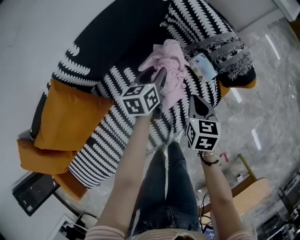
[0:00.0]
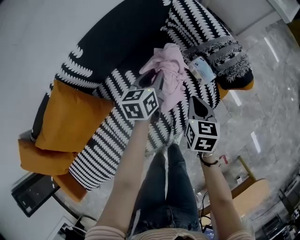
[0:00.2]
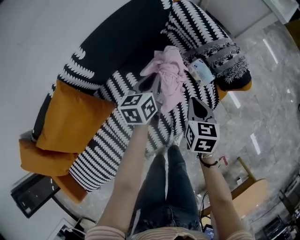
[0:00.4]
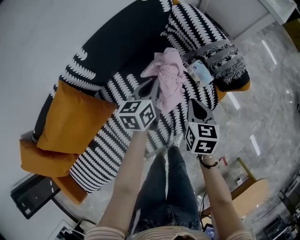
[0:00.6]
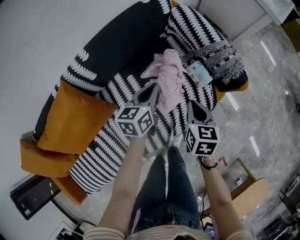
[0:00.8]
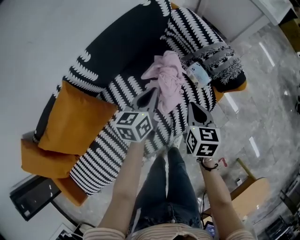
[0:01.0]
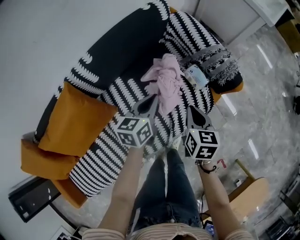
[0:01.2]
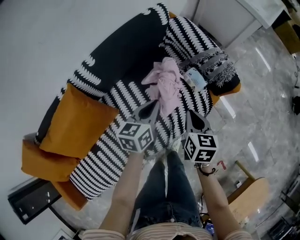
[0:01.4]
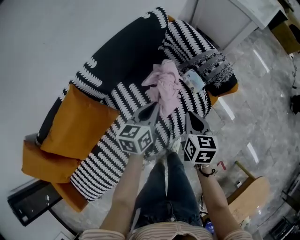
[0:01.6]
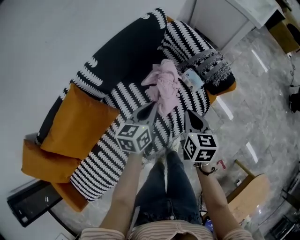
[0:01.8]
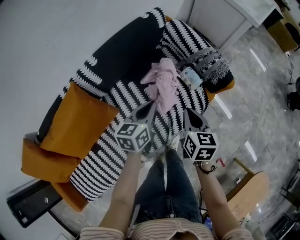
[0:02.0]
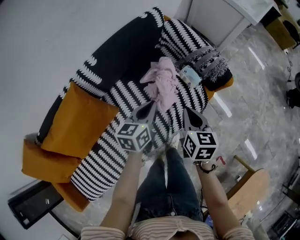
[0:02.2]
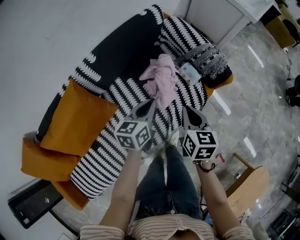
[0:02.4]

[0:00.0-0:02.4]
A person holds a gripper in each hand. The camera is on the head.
0:00.0 to 0:01.2: The right gripper moves upward, approximately 10 cm. The left gripper shifts about 15 cm upward and backward, and closes up.
0:01.2 to 0:02.4: The left gripper goes approximately 10 cm backward and upward, while the right gripper heads upward and backward, covering approximately 10 cm.

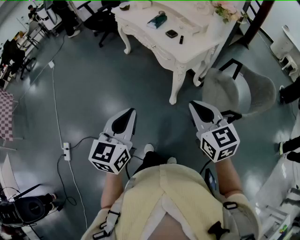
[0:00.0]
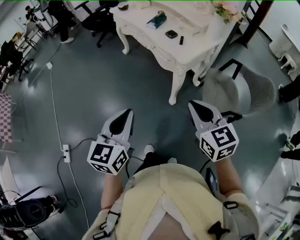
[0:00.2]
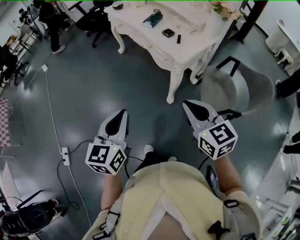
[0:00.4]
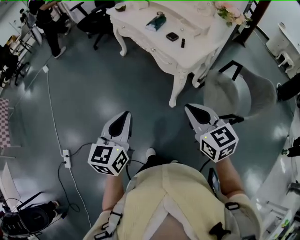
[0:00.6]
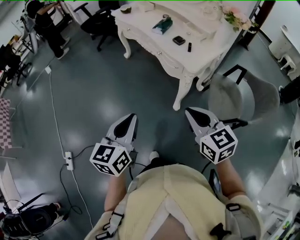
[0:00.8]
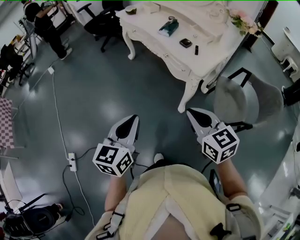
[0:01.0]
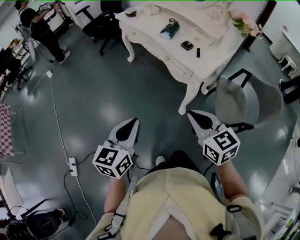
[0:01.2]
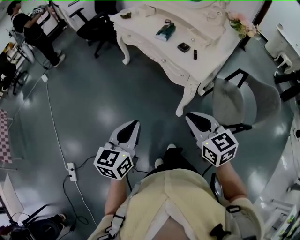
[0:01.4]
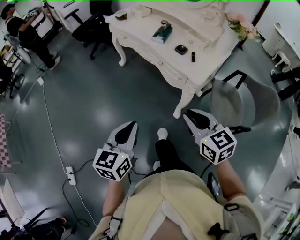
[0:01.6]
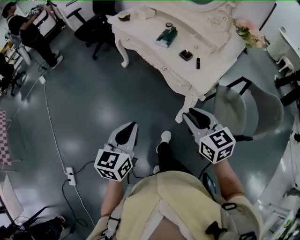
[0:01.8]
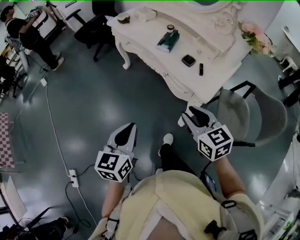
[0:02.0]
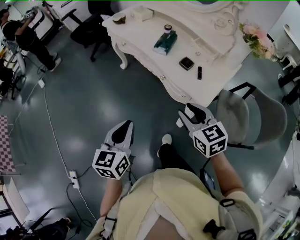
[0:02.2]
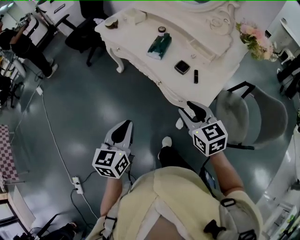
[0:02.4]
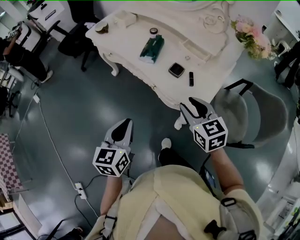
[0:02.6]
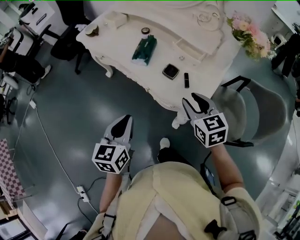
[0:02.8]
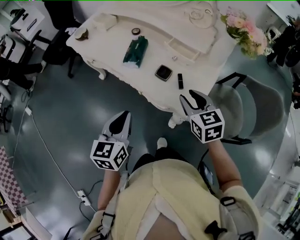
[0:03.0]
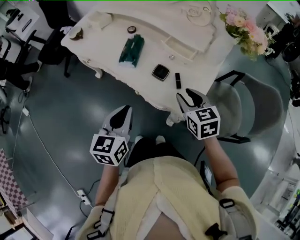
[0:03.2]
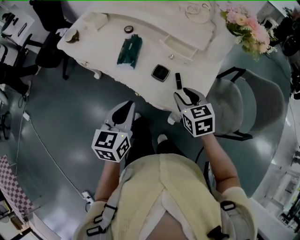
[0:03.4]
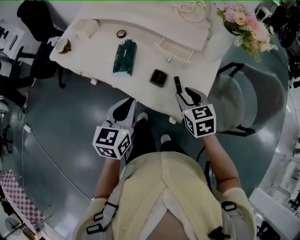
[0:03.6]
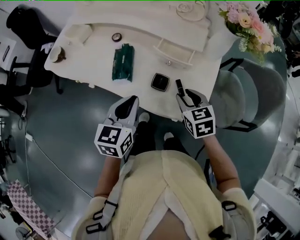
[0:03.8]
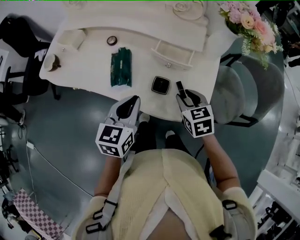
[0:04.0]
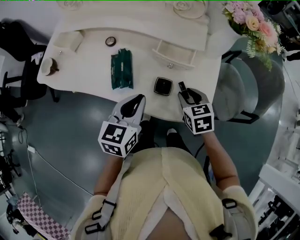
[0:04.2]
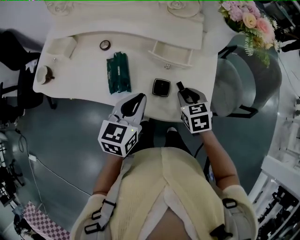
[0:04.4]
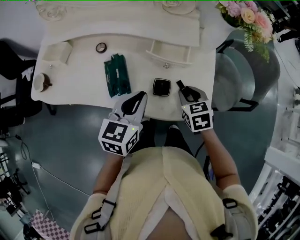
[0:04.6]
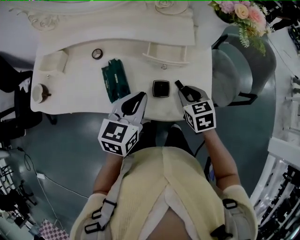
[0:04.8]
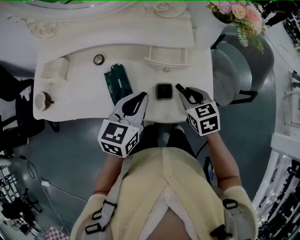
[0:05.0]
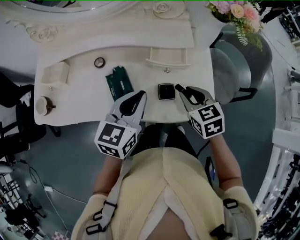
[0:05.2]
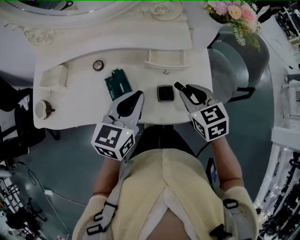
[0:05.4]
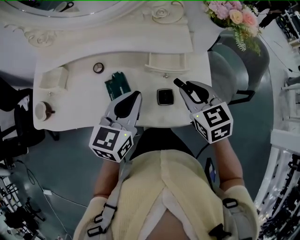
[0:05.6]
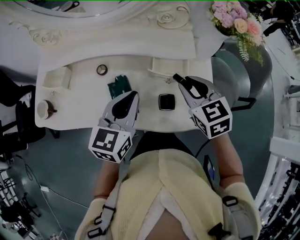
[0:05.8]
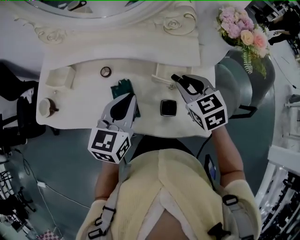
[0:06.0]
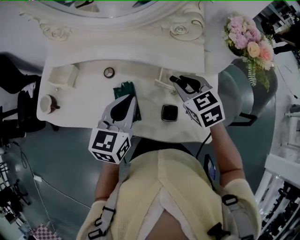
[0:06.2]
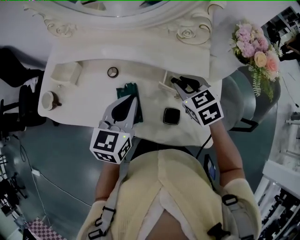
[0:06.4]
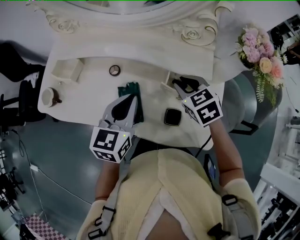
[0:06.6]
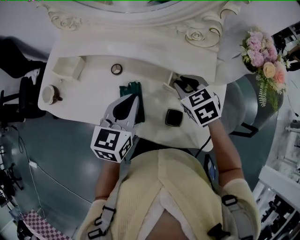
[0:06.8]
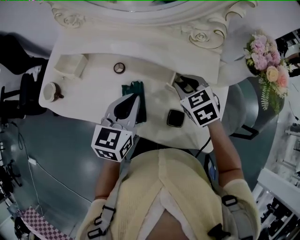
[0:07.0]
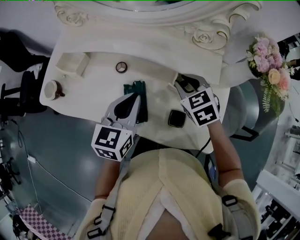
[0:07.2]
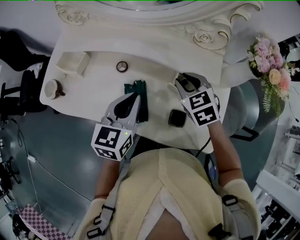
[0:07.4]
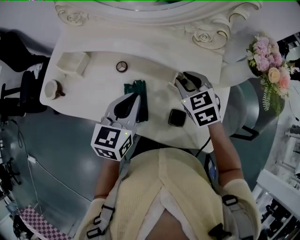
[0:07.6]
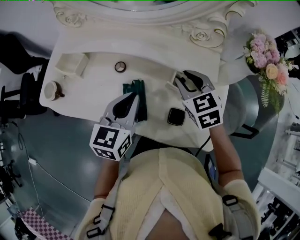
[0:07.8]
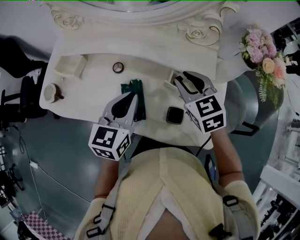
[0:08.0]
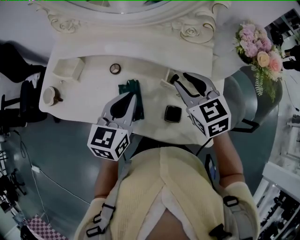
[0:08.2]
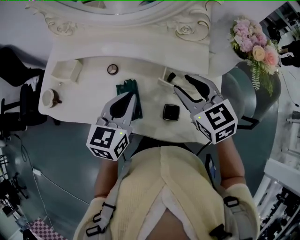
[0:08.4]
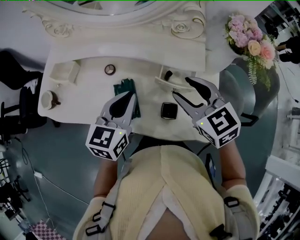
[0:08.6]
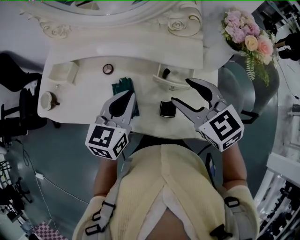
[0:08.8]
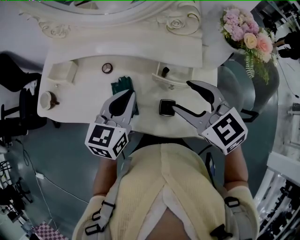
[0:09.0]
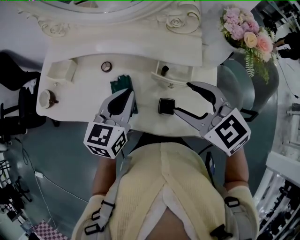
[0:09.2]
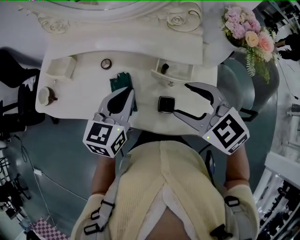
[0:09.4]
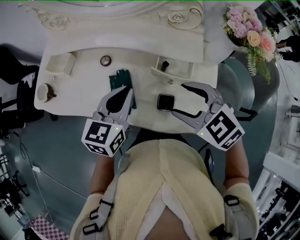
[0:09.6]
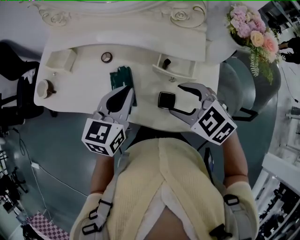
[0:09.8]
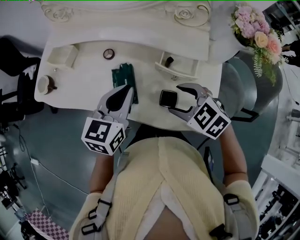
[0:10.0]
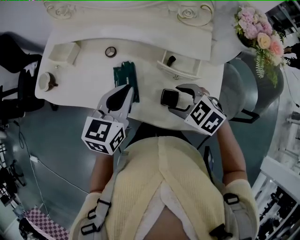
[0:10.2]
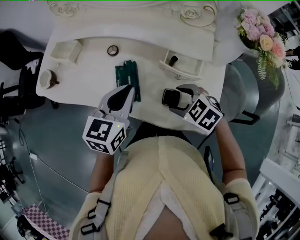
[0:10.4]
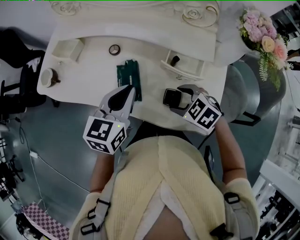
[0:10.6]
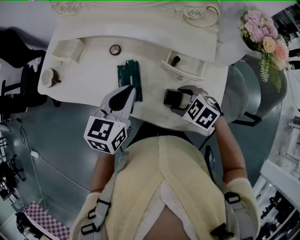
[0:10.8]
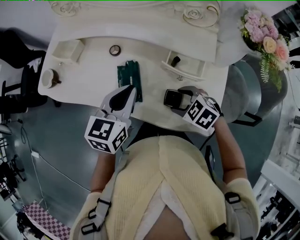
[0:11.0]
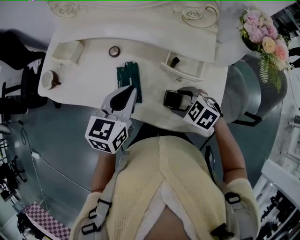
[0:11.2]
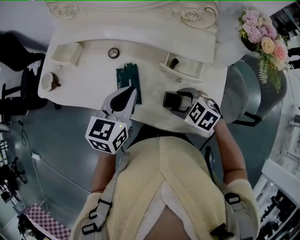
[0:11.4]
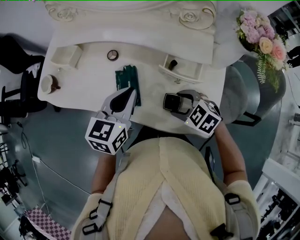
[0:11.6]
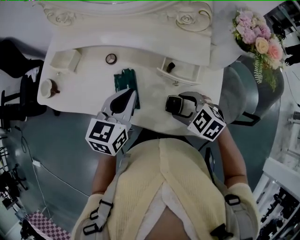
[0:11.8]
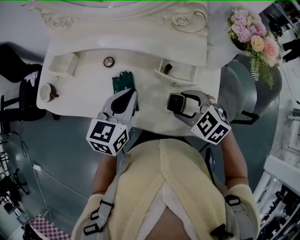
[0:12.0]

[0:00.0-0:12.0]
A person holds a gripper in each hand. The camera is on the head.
0:00.0 to 0:01.6: The two grippers go some 20 cm forward and to the left.
0:01.6 to 0:03.0: The left gripper shifts roughly 30 cm forward, while the right gripper goes approximately 35 cm forward and to the right, and changes its angle by some 20 degrees.
0:03.0 to 0:04.4: The left gripper changes place by approximately 20 cm, and swivels about 30 degrees. Meanwhile the right gripper goes approximately 10 cm downward, and swivels about 30 degrees.
0:04.4 to 0:06.0: The right gripper goes some 15 cm upward, forward and to the left; the left gripper shifts some 10 cm forward, to the left and upward.
0:06.0 to 0:07.6: The right gripper moves forward and to the left, some 10 cm.
0:07.6 to 0:09.0: The right gripper heads backward and upward, covering some 15 cm, and opens.
0:09.0 to 0:10.4: The right gripper travels downward by approximately 15 cm, and swivels approximately 30 degrees.
0:10.4 to 0:12.0: There are only small adjustments of the grippers.

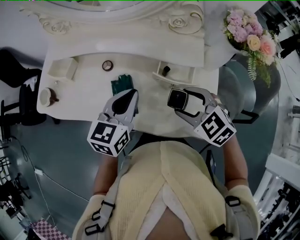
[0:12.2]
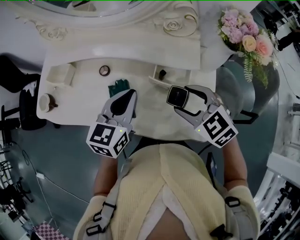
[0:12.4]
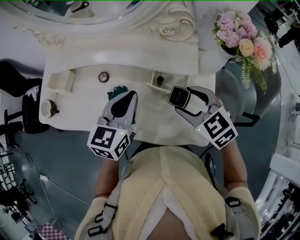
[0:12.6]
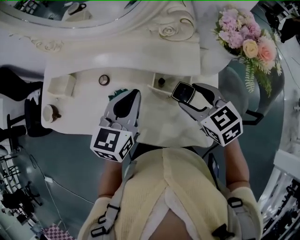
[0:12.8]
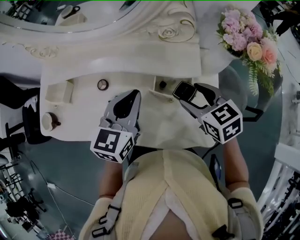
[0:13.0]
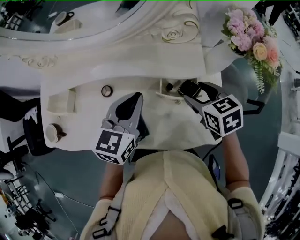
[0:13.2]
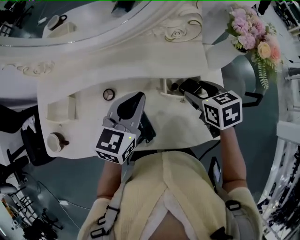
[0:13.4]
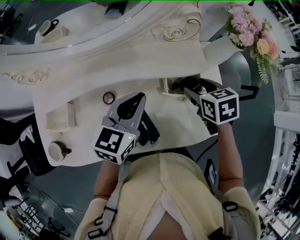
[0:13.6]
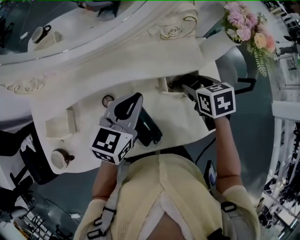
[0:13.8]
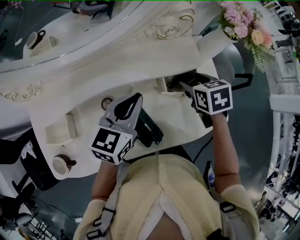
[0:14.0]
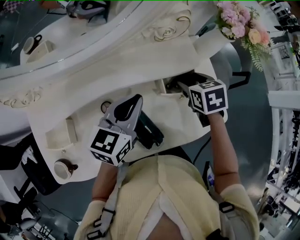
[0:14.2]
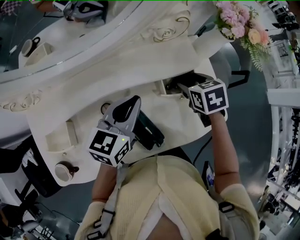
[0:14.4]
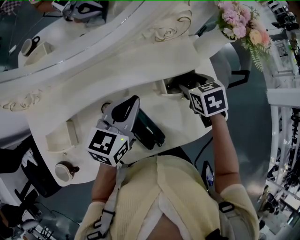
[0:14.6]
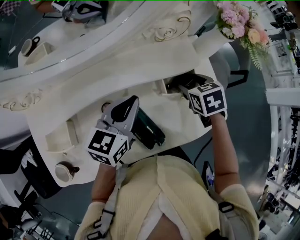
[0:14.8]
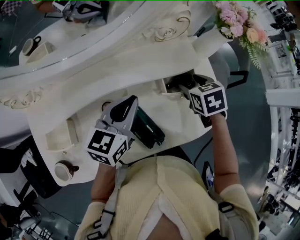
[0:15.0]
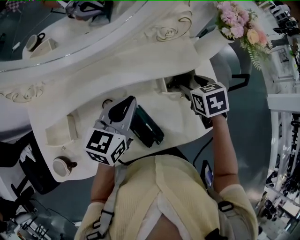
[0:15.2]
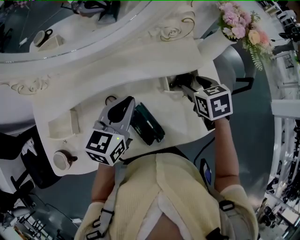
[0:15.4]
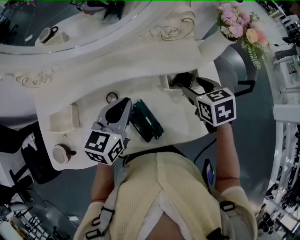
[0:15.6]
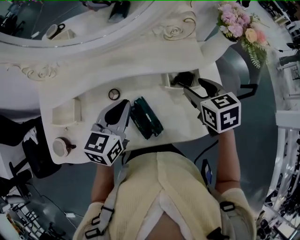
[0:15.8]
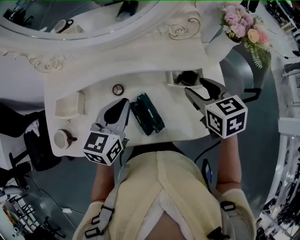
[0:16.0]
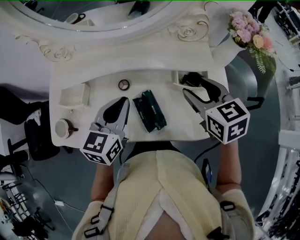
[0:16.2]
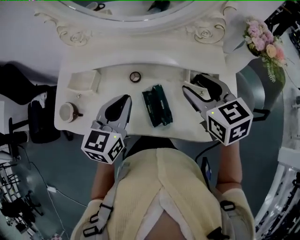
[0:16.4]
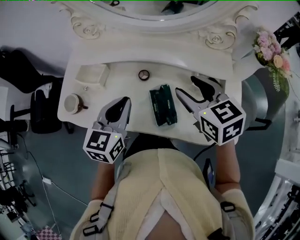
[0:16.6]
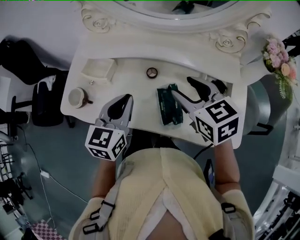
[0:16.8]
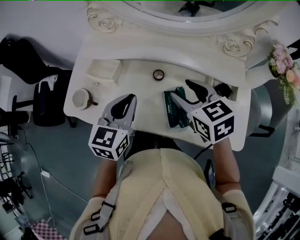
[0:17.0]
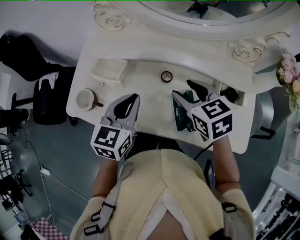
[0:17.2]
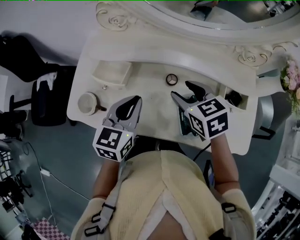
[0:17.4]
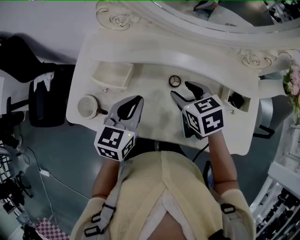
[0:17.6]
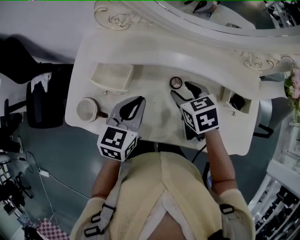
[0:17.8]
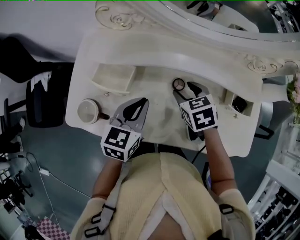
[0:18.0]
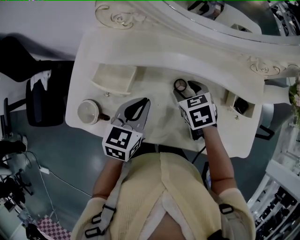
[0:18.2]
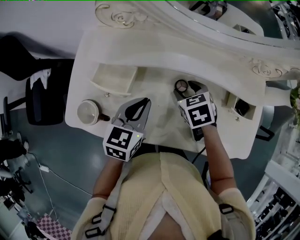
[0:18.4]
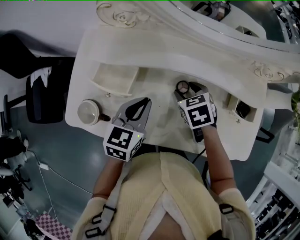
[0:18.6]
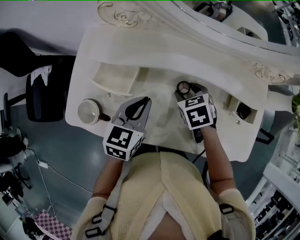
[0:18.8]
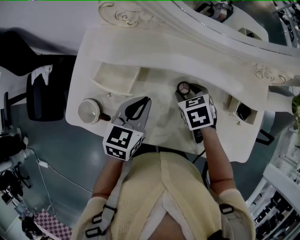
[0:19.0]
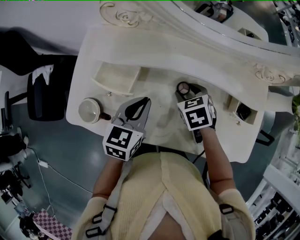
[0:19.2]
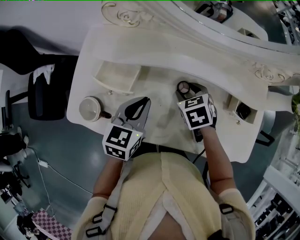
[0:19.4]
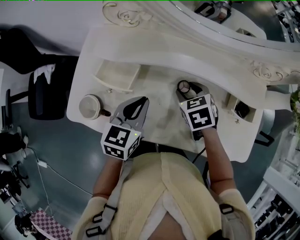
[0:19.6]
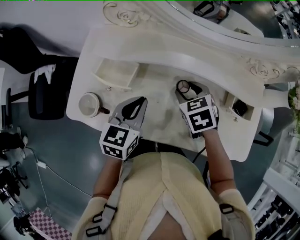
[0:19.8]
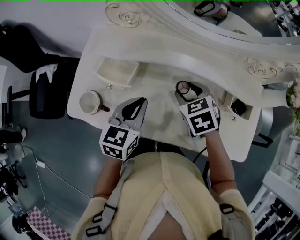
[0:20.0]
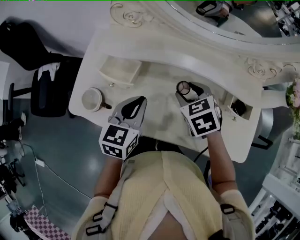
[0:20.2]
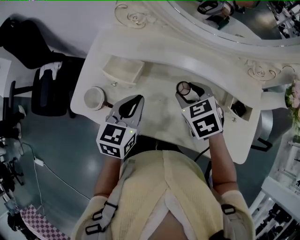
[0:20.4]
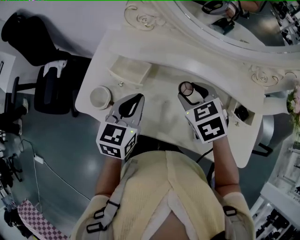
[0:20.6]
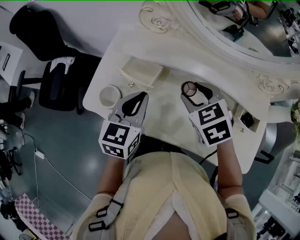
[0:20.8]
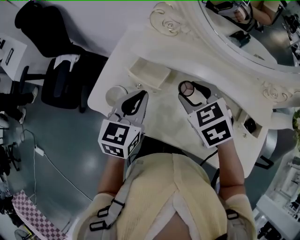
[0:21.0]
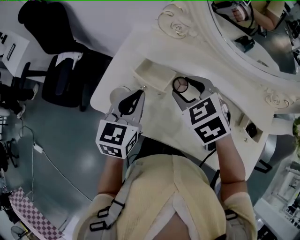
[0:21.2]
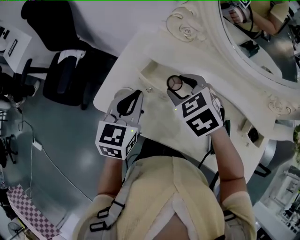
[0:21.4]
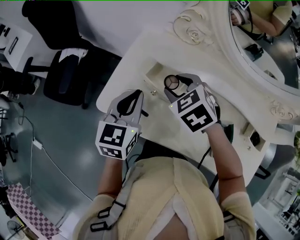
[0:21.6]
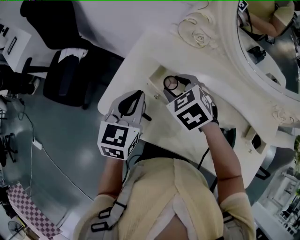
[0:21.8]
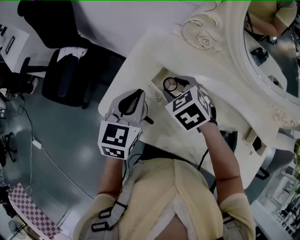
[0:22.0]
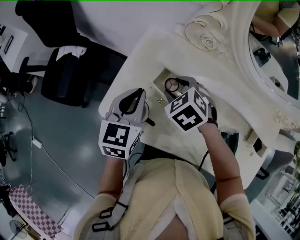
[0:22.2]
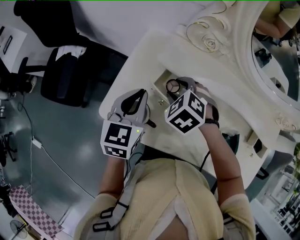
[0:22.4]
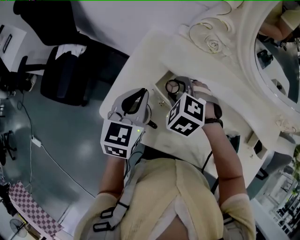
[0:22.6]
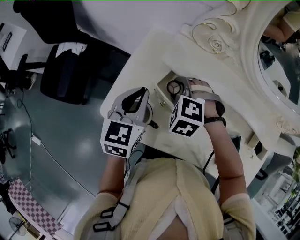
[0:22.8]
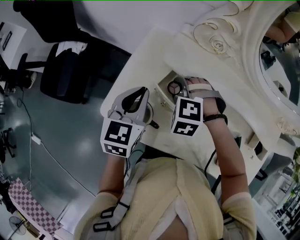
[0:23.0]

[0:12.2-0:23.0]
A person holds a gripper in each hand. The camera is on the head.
0:12.2 to 0:13.8: The right gripper moves some 15 cm, and rolls clockwise, seen from behind, by some 60 degrees. Meanwhile the left gripper changes place by about 10 cm, and rotates about 30 degrees.
0:13.8 to 0:15.2: The grippers move only a little.
0:15.2 to 0:16.8: The right gripper moves about 25 cm, and changes its angle by some 50 degrees. The left gripper moves roughly 20 cm, and turns by about 40 degrees.
0:16.8 to 0:18.4: The right gripper moves downward, forward and to the left, approximately 20 cm, and changes its angle by approximately 30 degrees. Meanwhile the left gripper heads downward, forward and to the left, covering approximately 15 cm.
0:18.4 to 0:20.0: The right gripper moves upward, approximately 5 cm.
0:20.0 to 0:21.4: The left gripper moves to the left, approximately 15 cm. The right gripper shifts roughly 20 cm to the left and upward, and swivels about 30 degrees.
0:21.4 to 0:23.0: The right gripper travels downward by some 10 cm, and rotates around the line of its fingers by some 40 degrees, counterclockwise from behind. Meanwhile the left gripper is displaced forward by about 5 cm.
